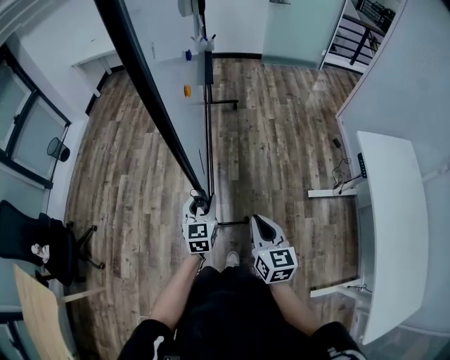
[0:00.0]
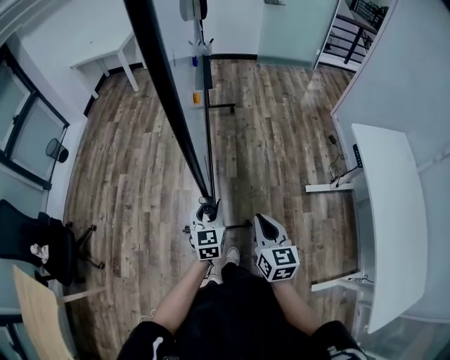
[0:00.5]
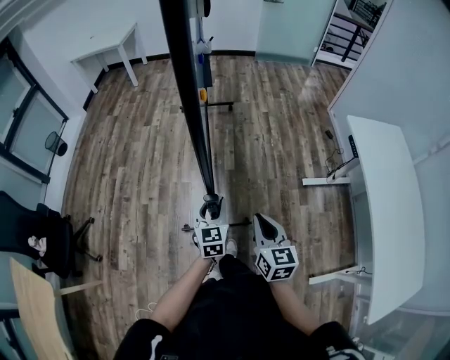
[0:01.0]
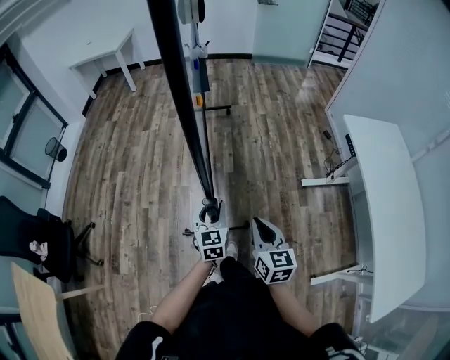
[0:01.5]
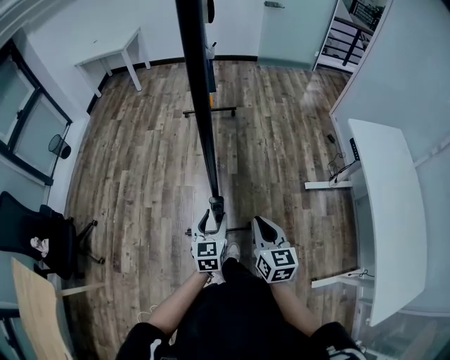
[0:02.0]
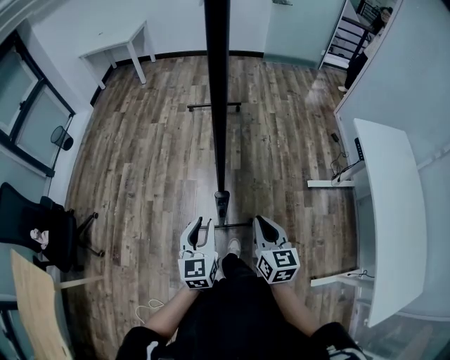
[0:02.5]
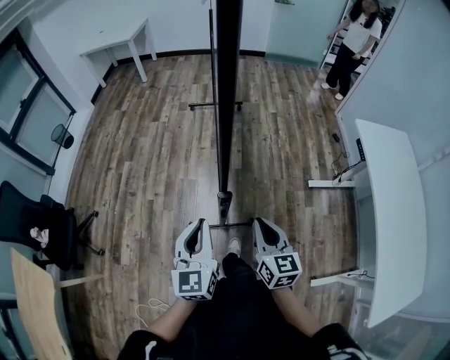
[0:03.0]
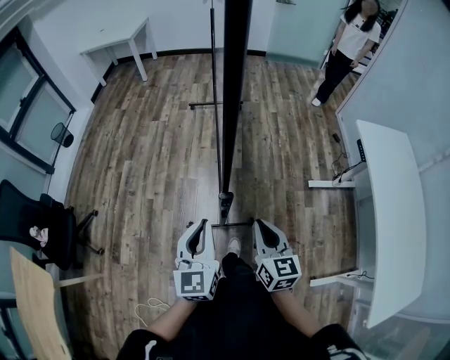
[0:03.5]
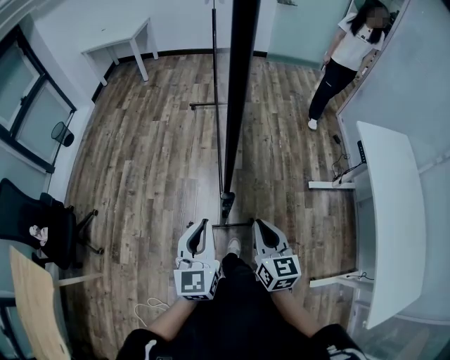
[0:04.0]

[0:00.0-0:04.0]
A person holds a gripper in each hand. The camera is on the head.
0:00.0 to 0:02.0: The grippers both shift backward by some 15 cm.
0:02.0 to 0:04.0: The left gripper travels upward, to the left and backward by roughly 15 cm, and closes up.

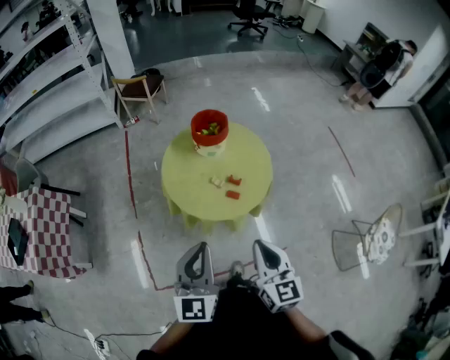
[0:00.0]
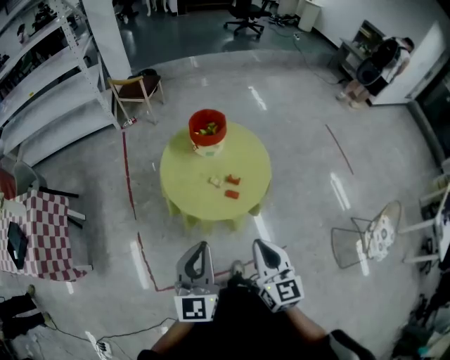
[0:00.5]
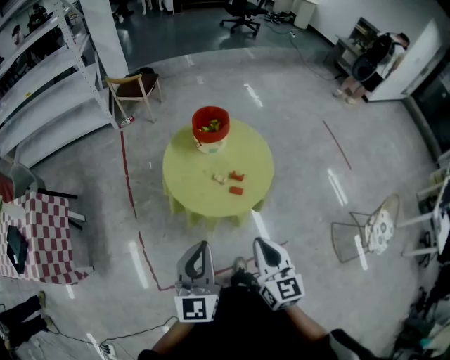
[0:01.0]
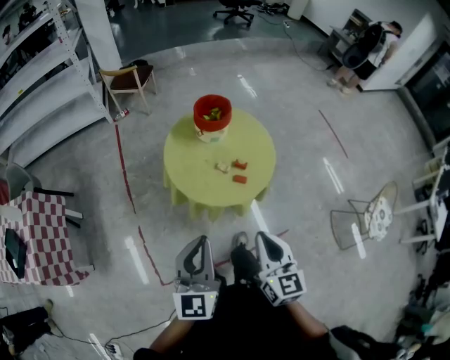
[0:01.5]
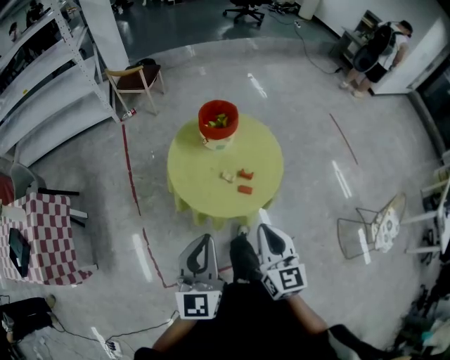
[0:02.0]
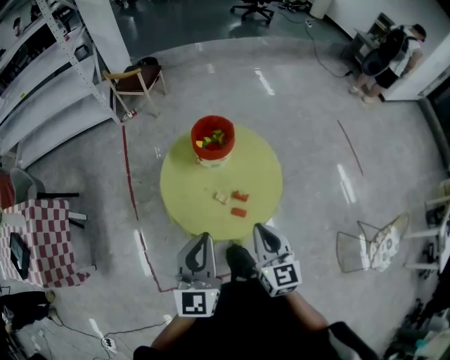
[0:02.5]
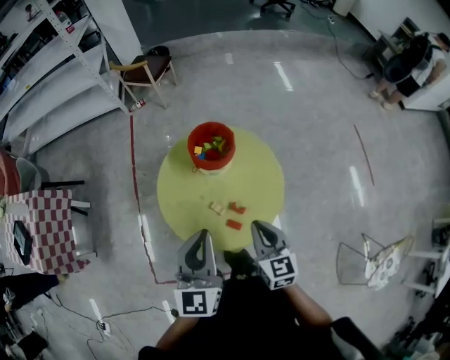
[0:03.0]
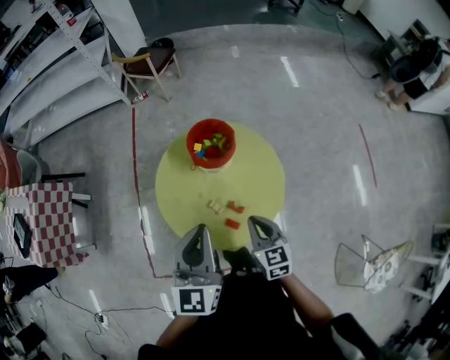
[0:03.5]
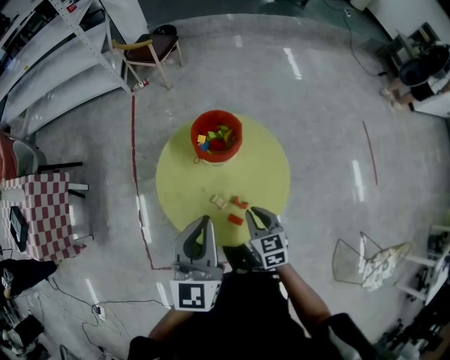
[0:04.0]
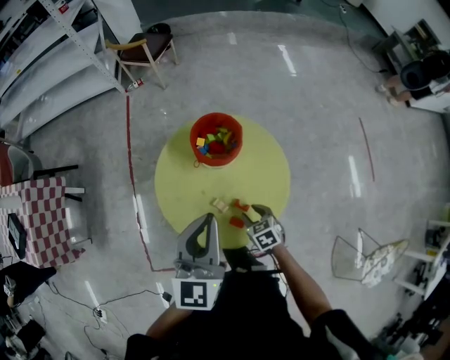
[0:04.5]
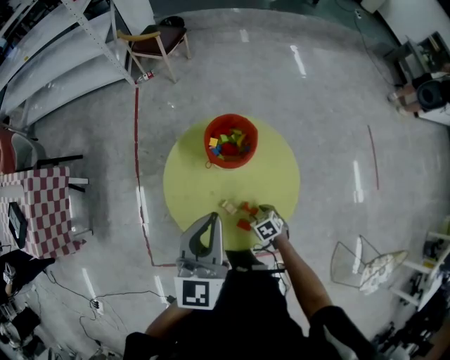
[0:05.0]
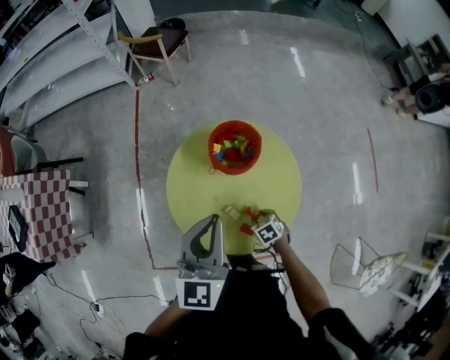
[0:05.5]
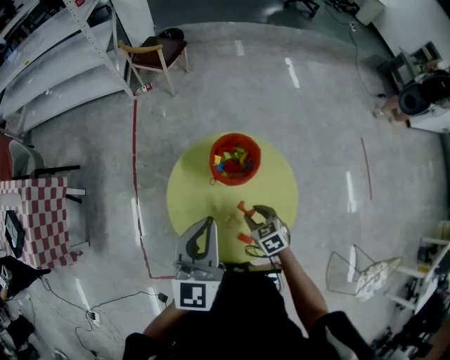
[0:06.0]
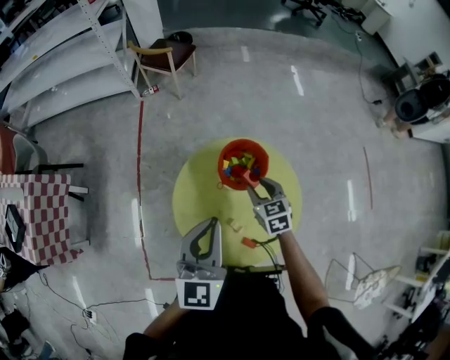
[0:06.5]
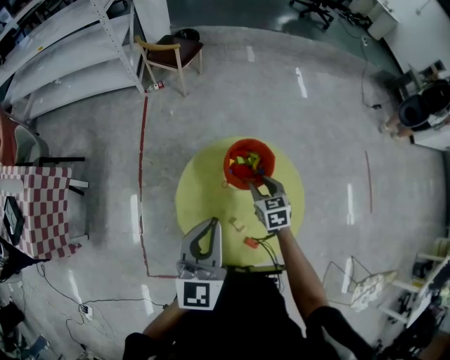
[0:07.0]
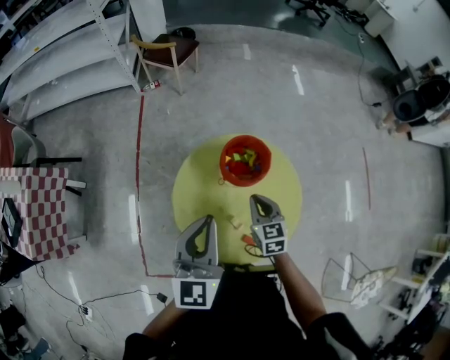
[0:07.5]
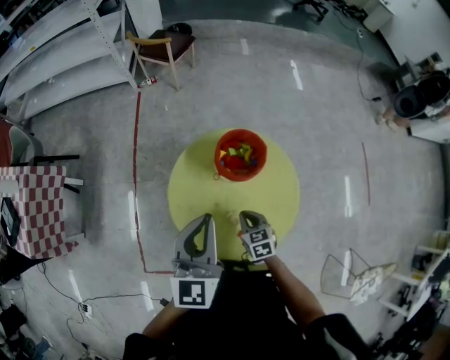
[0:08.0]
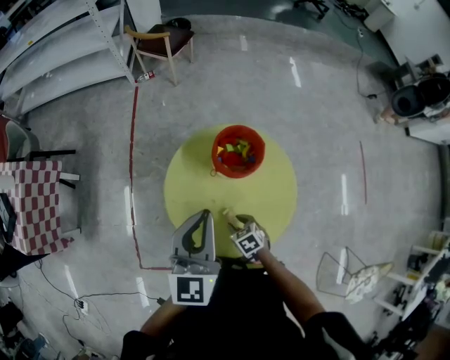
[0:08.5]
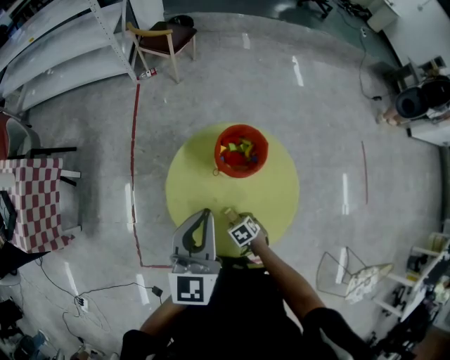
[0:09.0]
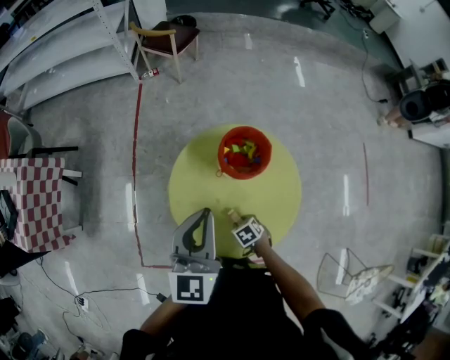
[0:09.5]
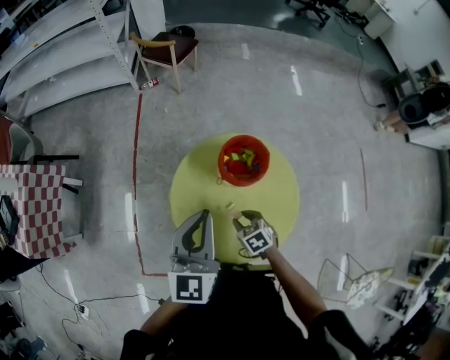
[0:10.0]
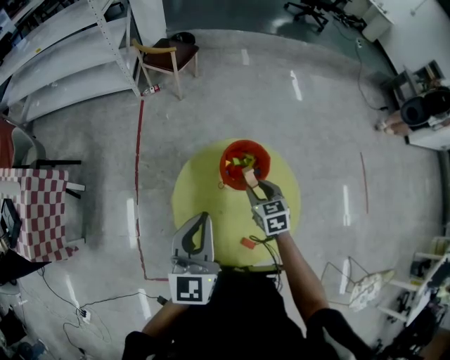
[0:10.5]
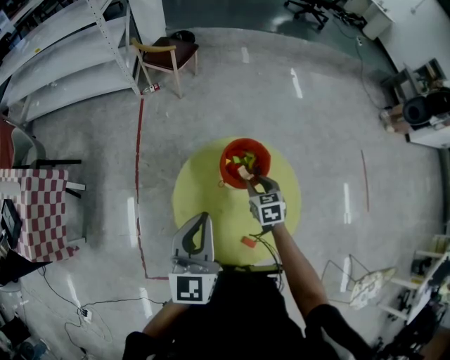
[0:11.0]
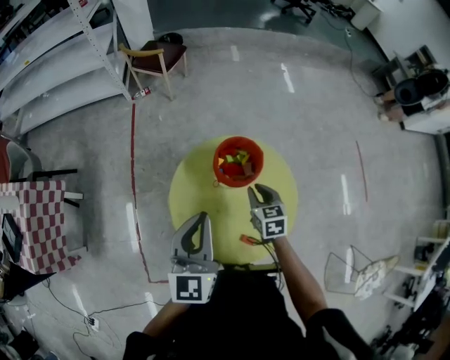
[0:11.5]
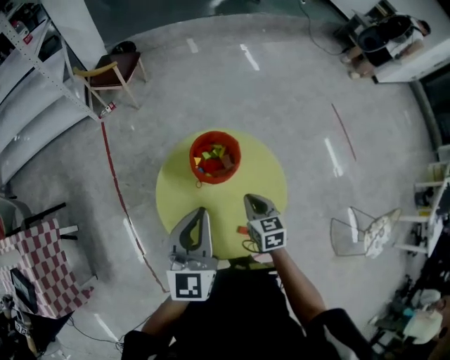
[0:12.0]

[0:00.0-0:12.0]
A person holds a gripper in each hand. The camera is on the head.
0:00.0 to 0:02.0: The left gripper moves to the left, roughly 5 cm; the right gripper goes roughly 10 cm forward and to the left.
0:02.0 to 0:04.0: The left gripper is displaced forward and to the right by roughly 25 cm. The right gripper shifts about 30 cm forward, downward and to the right, and rotates roughly 30 degrees.
0:04.0 to 0:06.0: Both grippers travel together forward, approximately 10 cm. The right gripper travels downward and back again, roughly 20 cm each way, turns by some 20 degrees, and opens its fingers.
0:06.0 to 0:08.0: The right gripper goes forward and returns, roughly 15 cm each way, and closes up.
0:08.0 to 0:10.0: The right gripper reaches roughly 10 cm downward, then returns, and opens up.
0:10.0 to 0:12.0: The right gripper travels upward by some 10 cm, turns by some 40 degrees, and closes up.

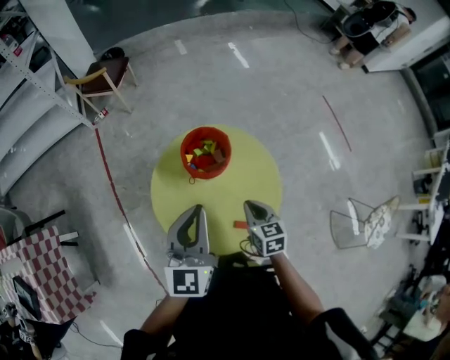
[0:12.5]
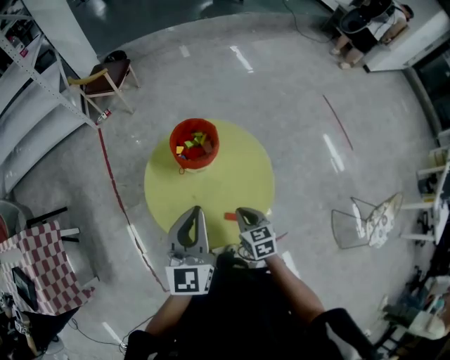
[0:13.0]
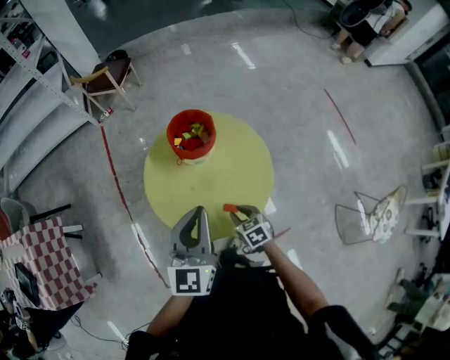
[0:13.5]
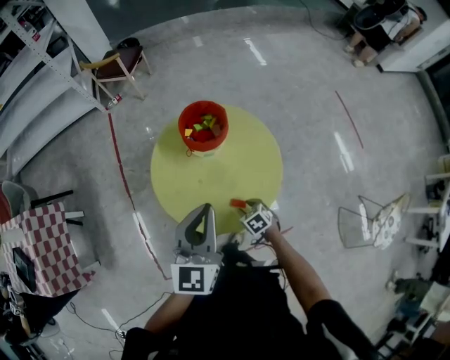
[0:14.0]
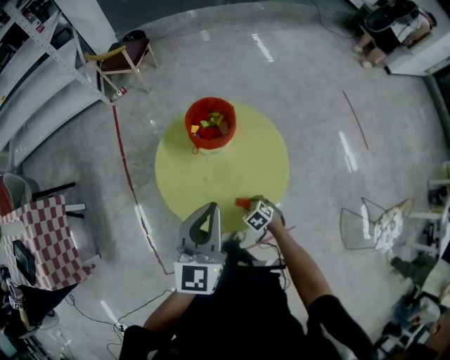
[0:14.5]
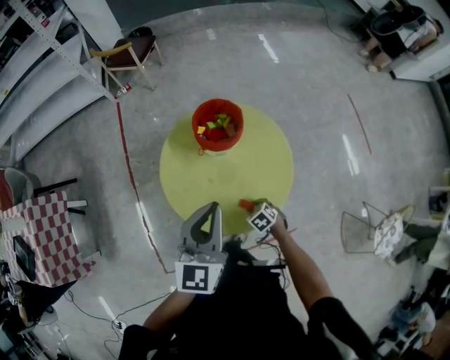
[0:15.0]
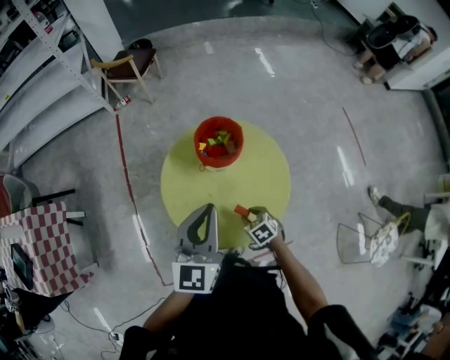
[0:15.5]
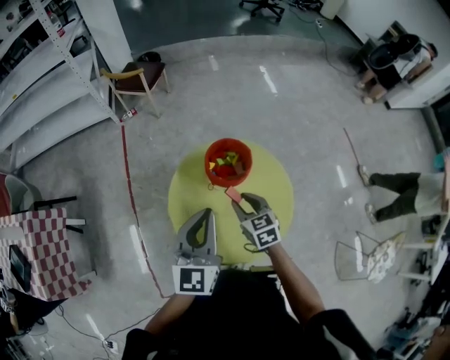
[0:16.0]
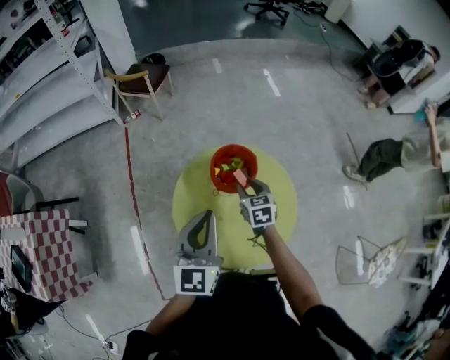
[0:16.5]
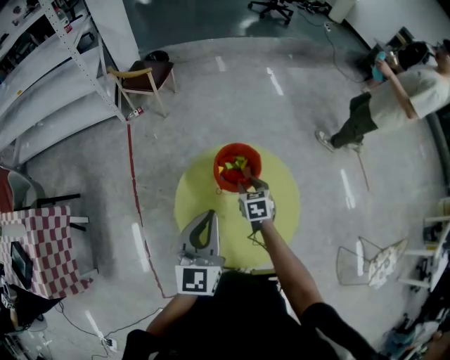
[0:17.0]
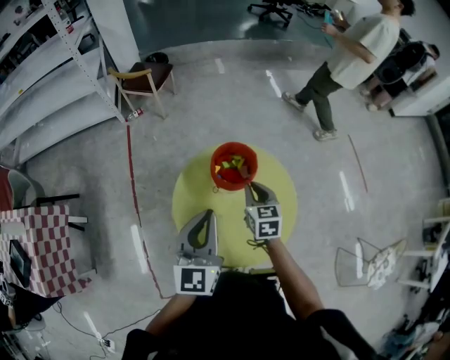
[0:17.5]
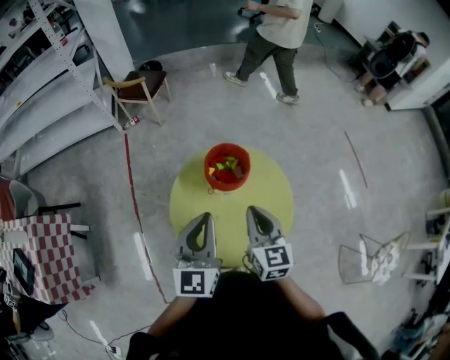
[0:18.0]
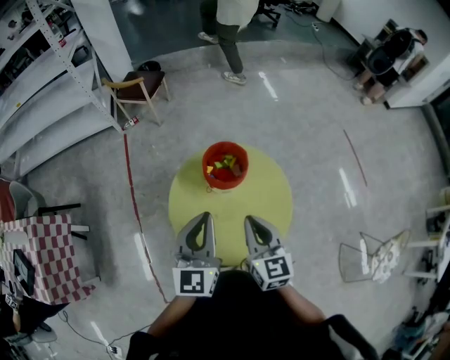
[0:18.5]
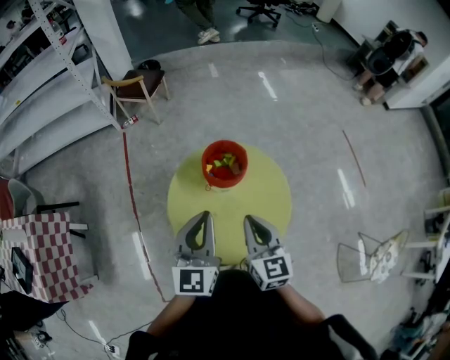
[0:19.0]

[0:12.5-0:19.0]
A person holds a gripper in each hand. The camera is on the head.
0:12.5 to 0:14.5: The right gripper moves downward, roughly 20 cm, points its fingers roughly 30 degrees further downward, and opens its fingers; the left gripper ends up about 10 cm from where it was.
0:14.5 to 0:17.0: The right gripper ends up about 35 cm from where it was, and rotates approximately 40 degrees; the left gripper moves about 15 cm.
0:17.0 to 0:19.0: The right gripper heads upward and backward, covering approximately 25 cm, angles its fingers upward, by some 30 degrees, and closes its fingers.

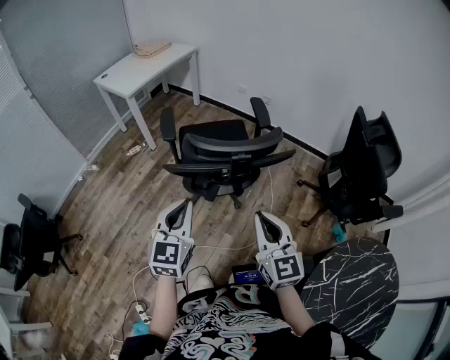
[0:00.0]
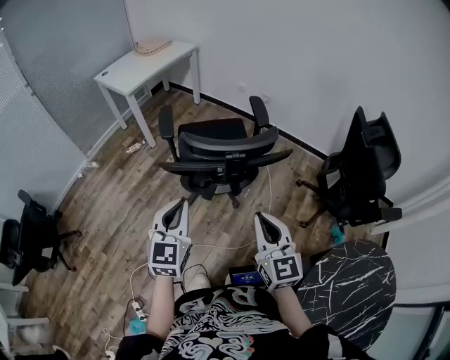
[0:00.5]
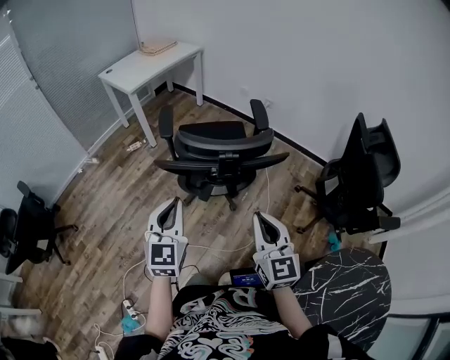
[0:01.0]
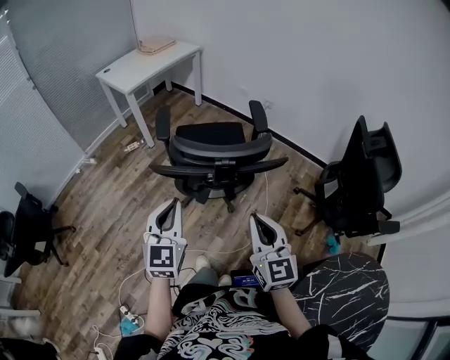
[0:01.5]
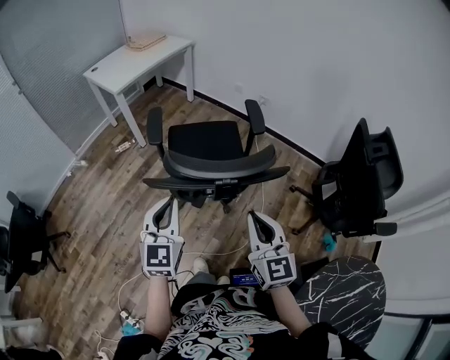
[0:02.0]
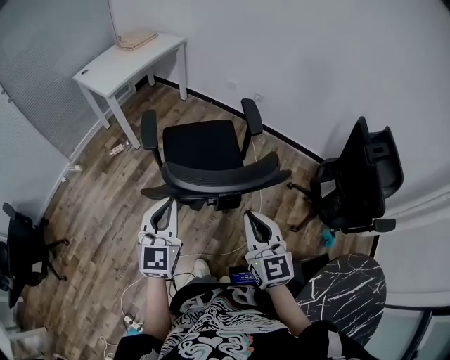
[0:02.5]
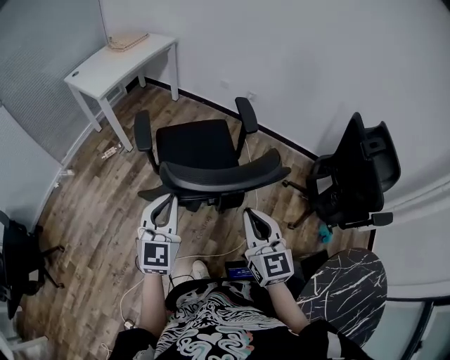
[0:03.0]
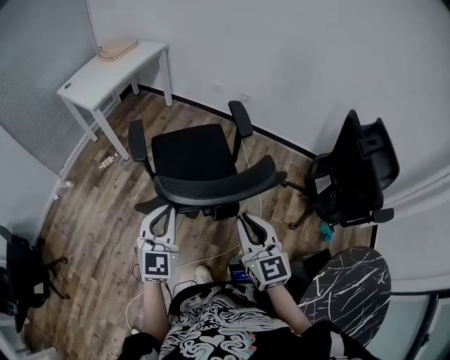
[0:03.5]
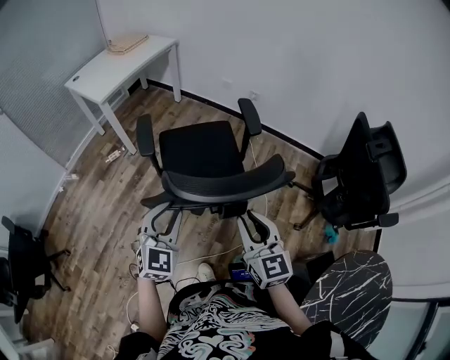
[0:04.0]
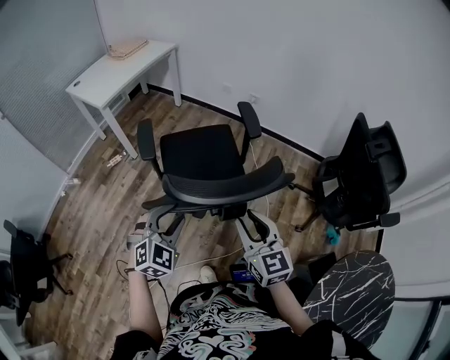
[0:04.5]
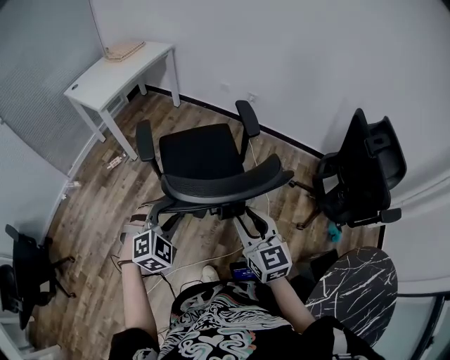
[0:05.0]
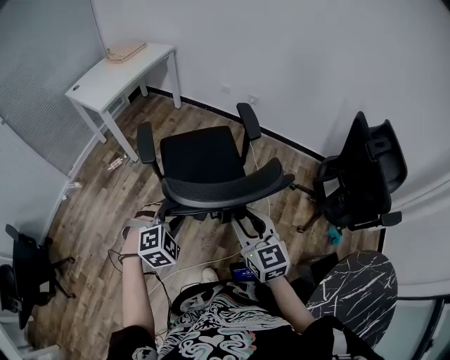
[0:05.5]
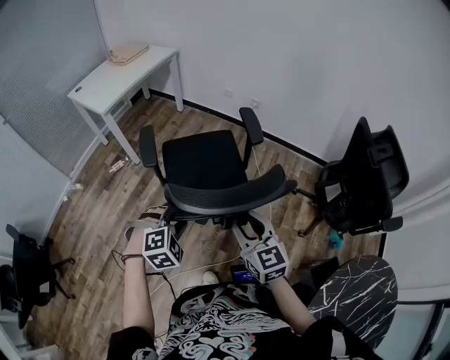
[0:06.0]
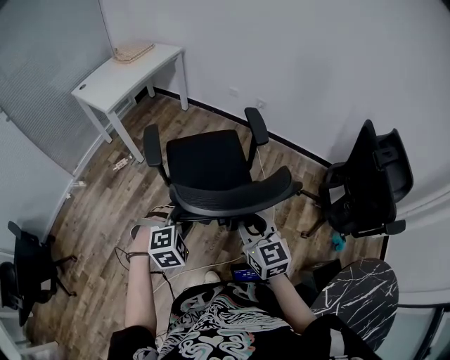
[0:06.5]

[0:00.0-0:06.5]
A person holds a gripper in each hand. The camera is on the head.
0:00.0 to 0:02.0: Both grippers move forward, roughly 10 cm.
0:02.0 to 0:04.5: The left gripper moves downward and forward, some 10 cm, turns by approximately 50 degrees, and opens up. Meanwhile the right gripper moves forward, about 5 cm.
0:04.5 to 0:06.5: The right gripper ends up roughly 5 cm from where it was. The left gripper turns by about 30 degrees.
